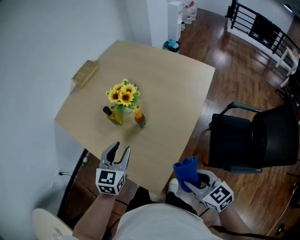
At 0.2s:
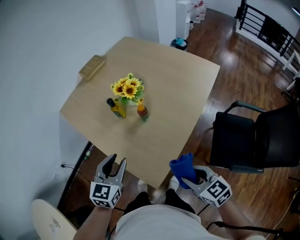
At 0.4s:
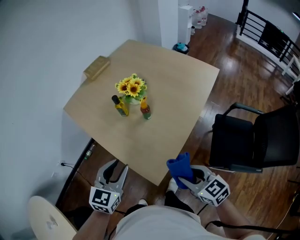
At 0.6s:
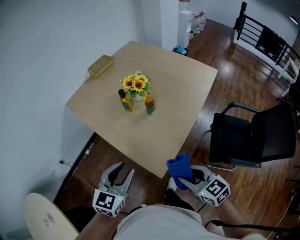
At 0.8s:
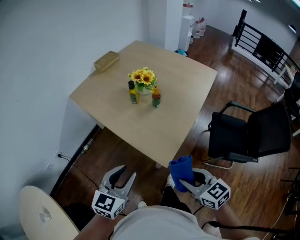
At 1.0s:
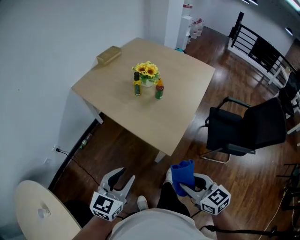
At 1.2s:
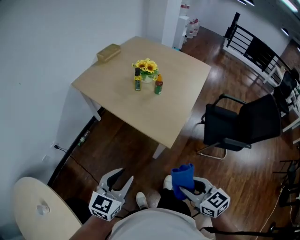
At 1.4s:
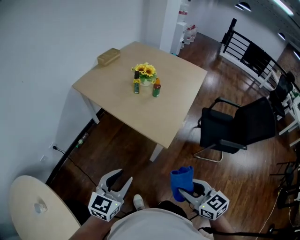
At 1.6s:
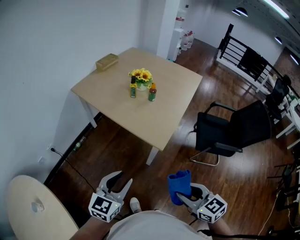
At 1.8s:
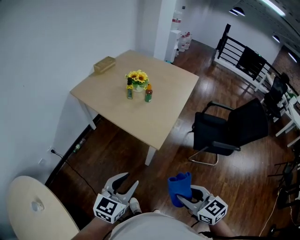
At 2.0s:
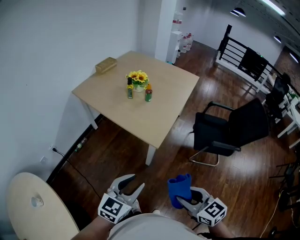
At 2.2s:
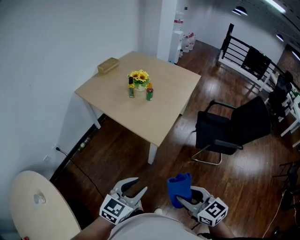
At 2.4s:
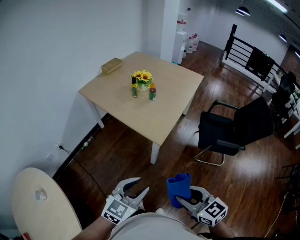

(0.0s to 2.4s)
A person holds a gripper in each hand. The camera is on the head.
0.0s - 1.2s: The two grippers go some 40 cm backward and to the left.
1.2s - 2.4s: The right gripper is displaced backward by roughly 15 cm, while the left gripper is displaced backward and to the right by approximately 20 cm.

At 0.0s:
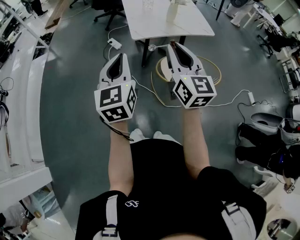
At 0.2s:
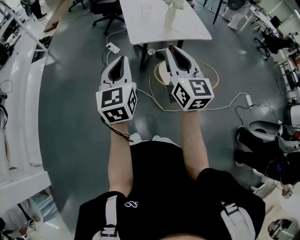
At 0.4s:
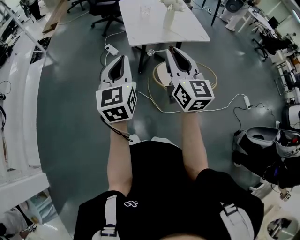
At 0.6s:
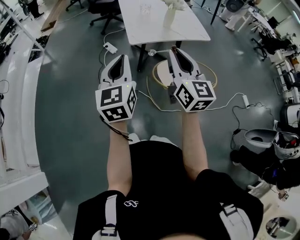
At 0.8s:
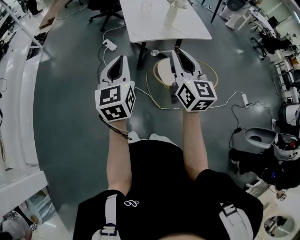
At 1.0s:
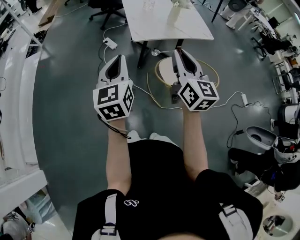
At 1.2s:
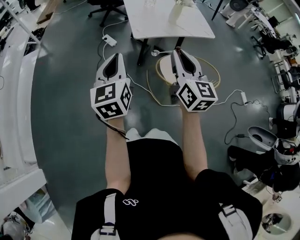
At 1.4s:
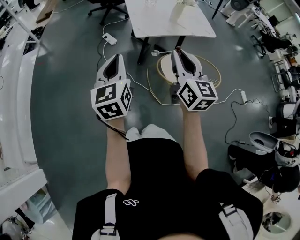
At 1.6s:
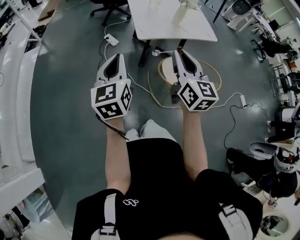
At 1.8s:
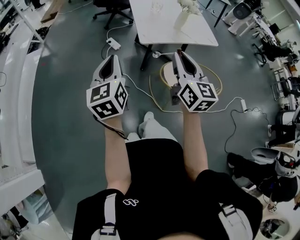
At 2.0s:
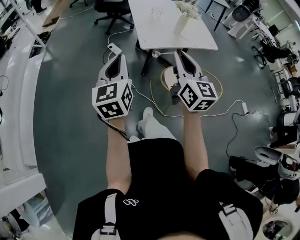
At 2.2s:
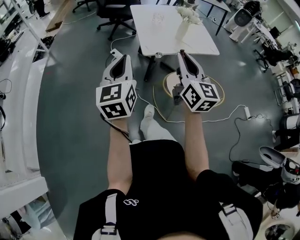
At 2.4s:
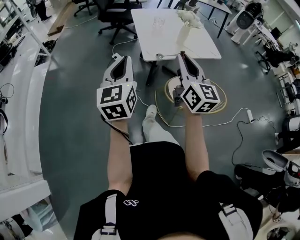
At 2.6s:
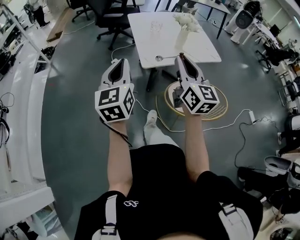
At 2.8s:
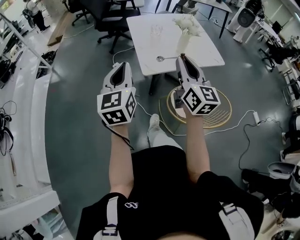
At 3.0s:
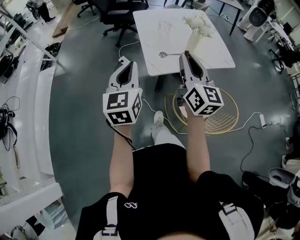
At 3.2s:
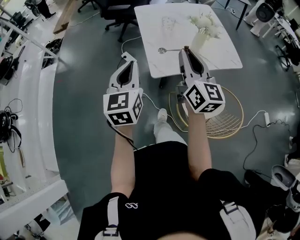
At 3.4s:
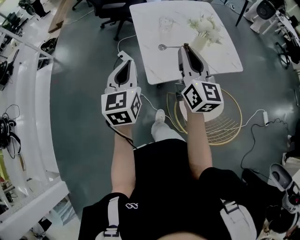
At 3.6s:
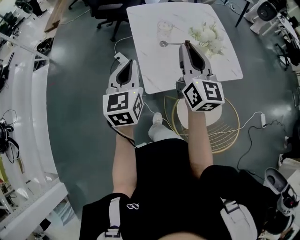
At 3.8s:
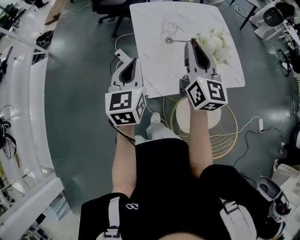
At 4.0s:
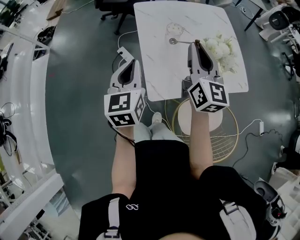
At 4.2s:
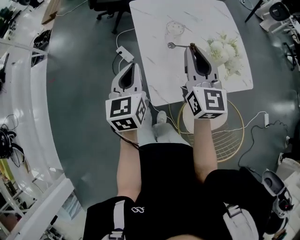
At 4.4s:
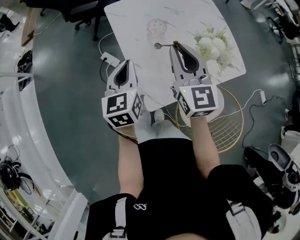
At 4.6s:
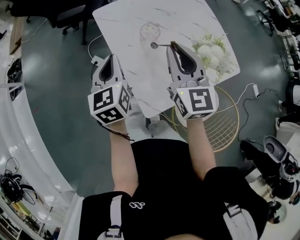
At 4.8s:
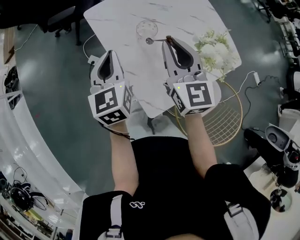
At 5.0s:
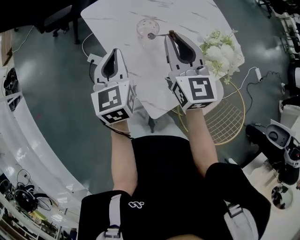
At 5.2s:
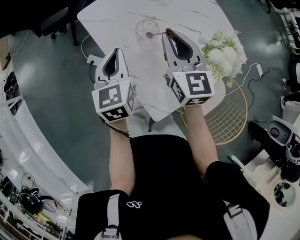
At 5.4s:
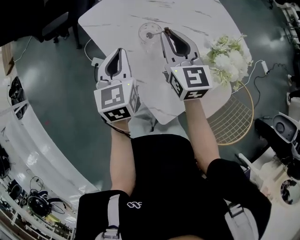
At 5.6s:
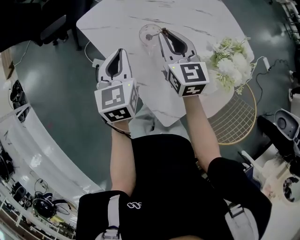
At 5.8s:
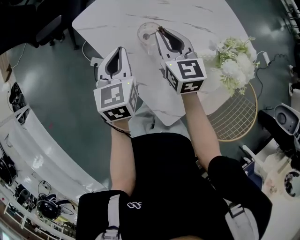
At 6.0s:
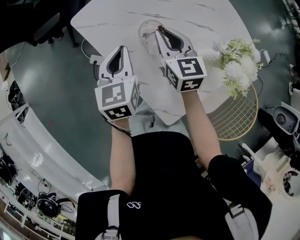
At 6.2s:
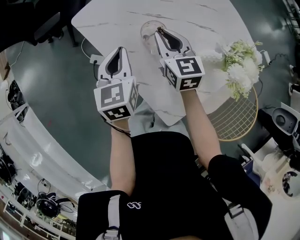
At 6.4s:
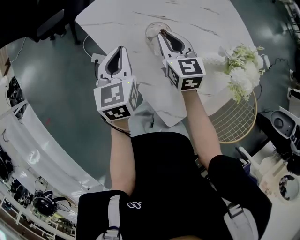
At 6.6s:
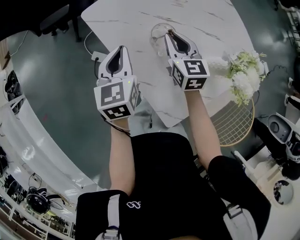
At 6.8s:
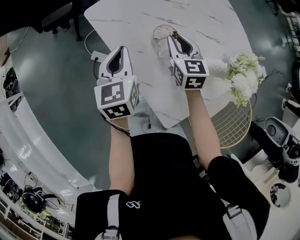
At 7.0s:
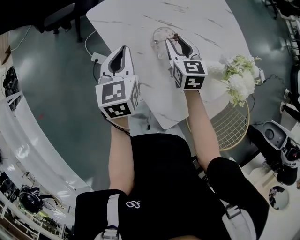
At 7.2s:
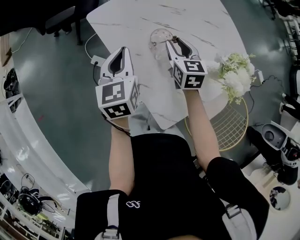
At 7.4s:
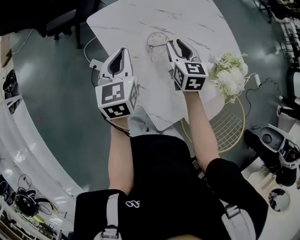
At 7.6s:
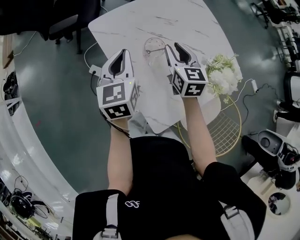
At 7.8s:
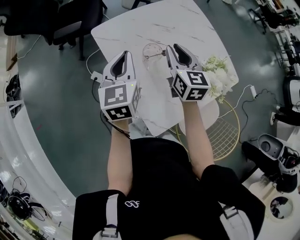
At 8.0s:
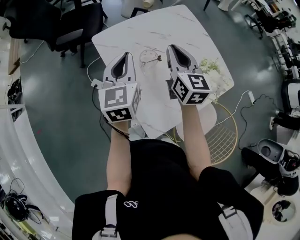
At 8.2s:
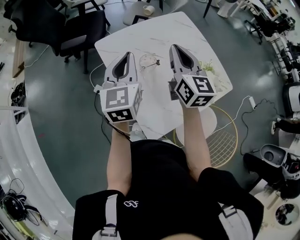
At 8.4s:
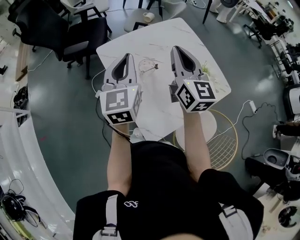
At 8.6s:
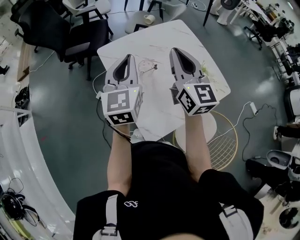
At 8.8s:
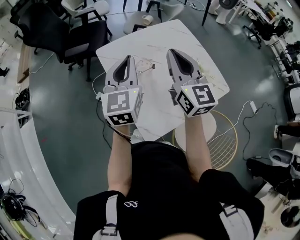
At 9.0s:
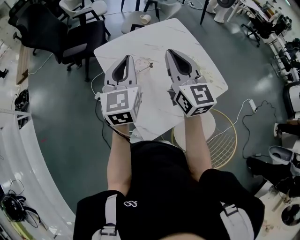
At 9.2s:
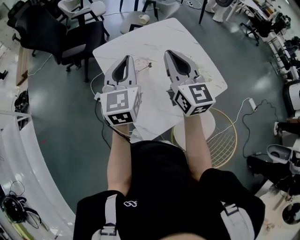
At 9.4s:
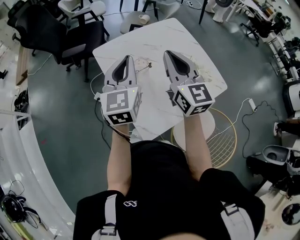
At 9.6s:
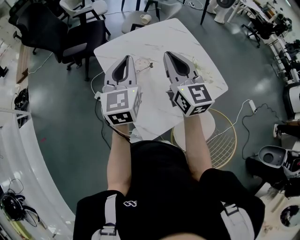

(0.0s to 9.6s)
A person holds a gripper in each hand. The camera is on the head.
0.0s - 1.6s: The left gripper heads to the left, covering some 10 cm. Meanwhile the right gripper moves approximately 5 cm.
1.6s - 3.2s: Both grippers move forward, about 25 cm.
3.2s - 4.8s: The two grippers go some 35 cm forward. The right gripper turns by roughly 30 degrees.
4.8s - 6.4s: The left gripper goes roughly 15 cm forward and downward, while the right gripper shifts roughly 20 cm downward and forward.
6.4s - 8.0s: Both grippers move upward, some 15 cm. The right gripper opens and closes again.
8.0s - 9.6s: The right gripper heads upward and backward, covering some 10 cm, while the left gripper travels upward by approximately 5 cm.

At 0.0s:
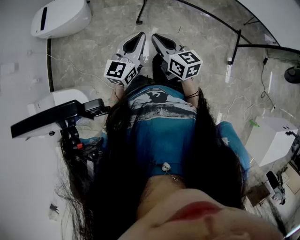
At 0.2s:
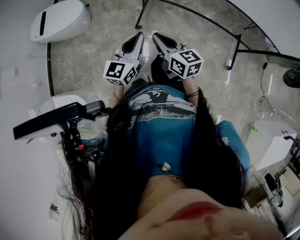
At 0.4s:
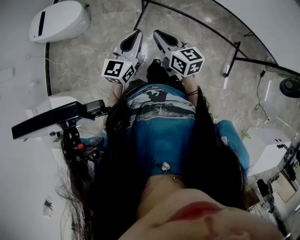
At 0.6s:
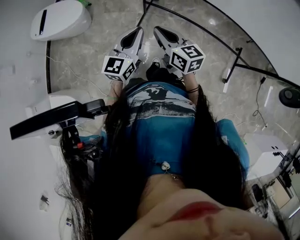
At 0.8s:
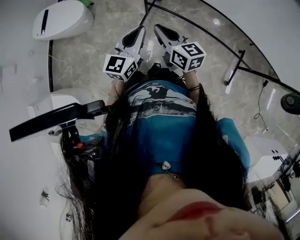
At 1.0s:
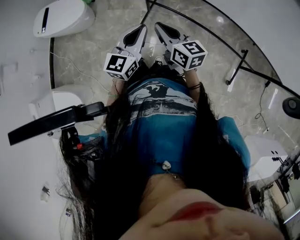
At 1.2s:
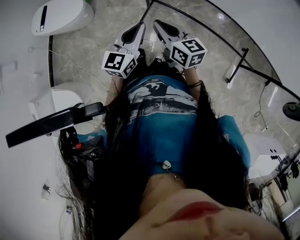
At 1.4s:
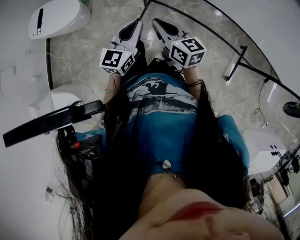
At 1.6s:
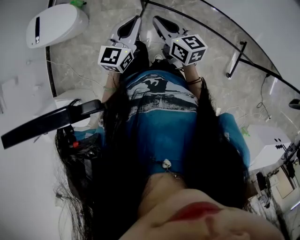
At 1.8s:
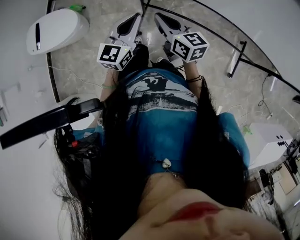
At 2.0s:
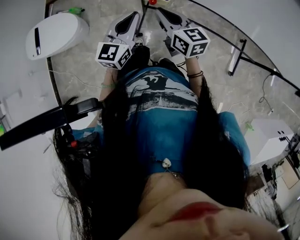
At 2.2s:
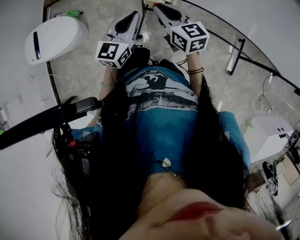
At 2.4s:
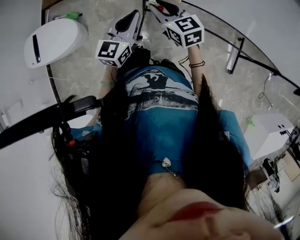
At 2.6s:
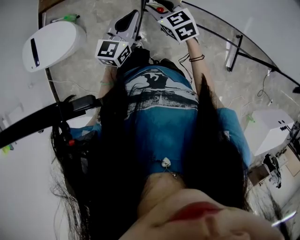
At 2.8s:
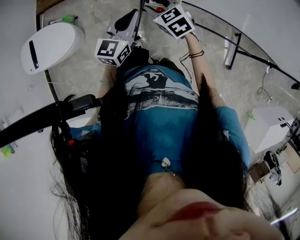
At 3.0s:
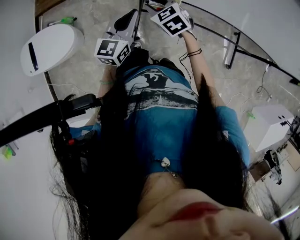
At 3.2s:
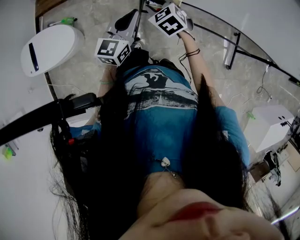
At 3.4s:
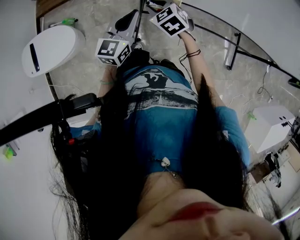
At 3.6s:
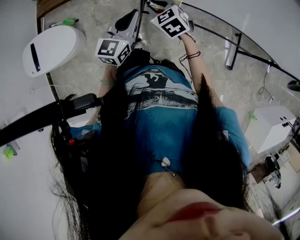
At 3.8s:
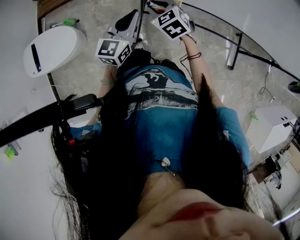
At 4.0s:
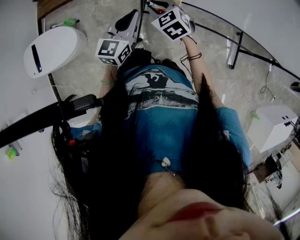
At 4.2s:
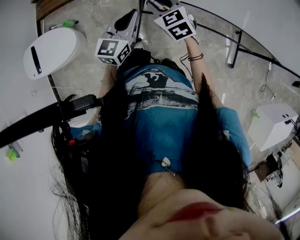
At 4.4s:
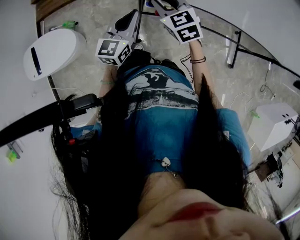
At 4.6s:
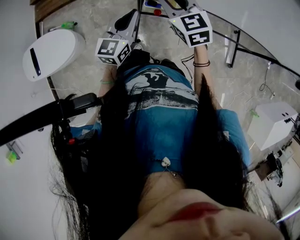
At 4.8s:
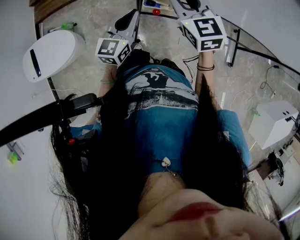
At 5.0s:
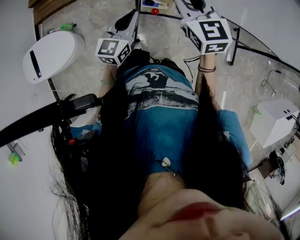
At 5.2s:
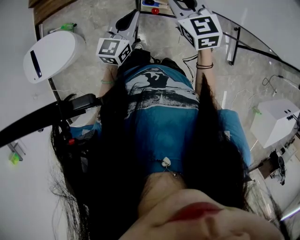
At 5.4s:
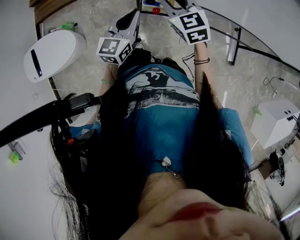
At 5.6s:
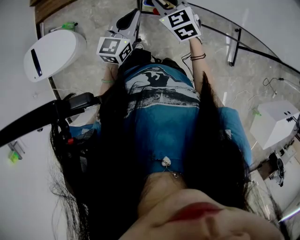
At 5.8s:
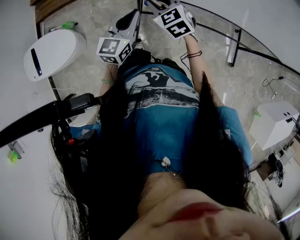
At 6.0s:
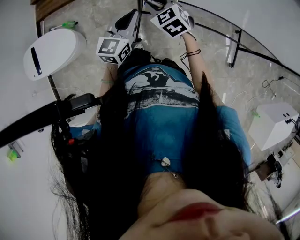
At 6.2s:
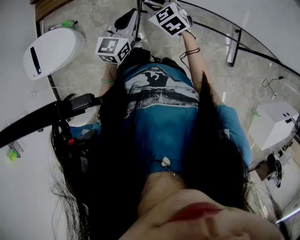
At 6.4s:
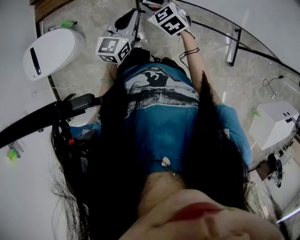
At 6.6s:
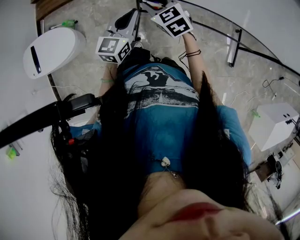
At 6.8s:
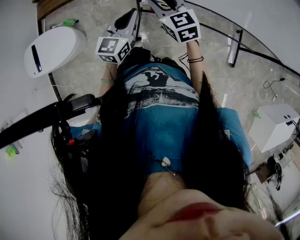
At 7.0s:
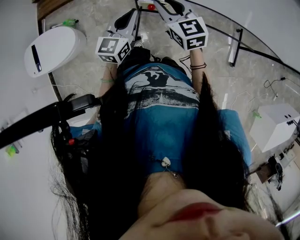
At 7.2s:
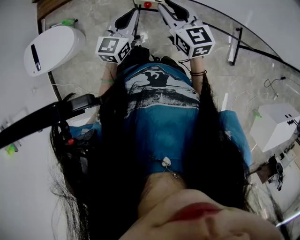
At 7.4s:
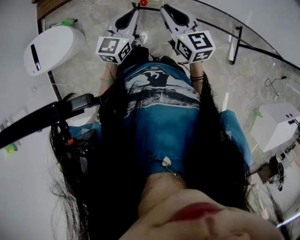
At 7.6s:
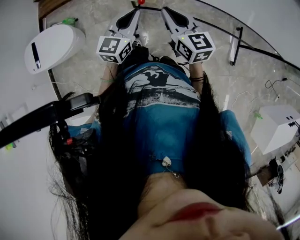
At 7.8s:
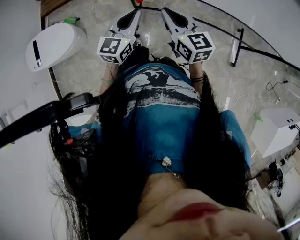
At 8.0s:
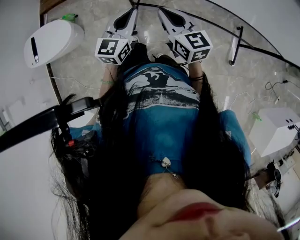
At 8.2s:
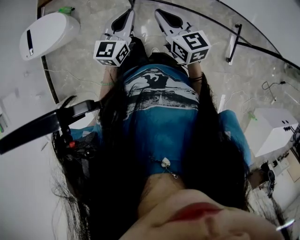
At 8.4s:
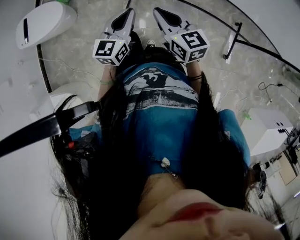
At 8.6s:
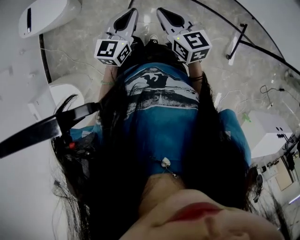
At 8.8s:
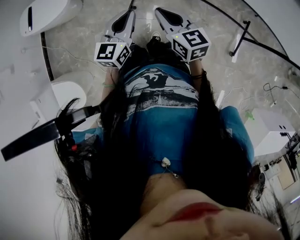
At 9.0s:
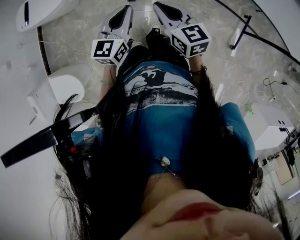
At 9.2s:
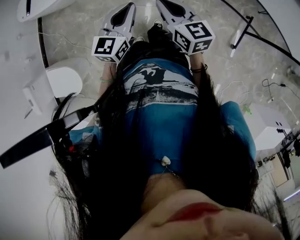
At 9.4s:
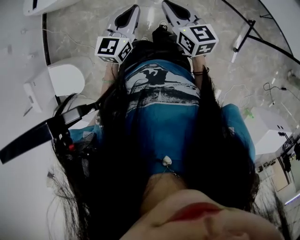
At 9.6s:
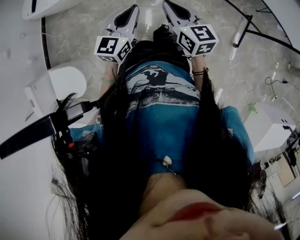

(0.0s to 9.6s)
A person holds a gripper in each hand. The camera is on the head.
0.0s - 1.6s: Both grippers move forward, approximately 35 cm.
1.6s - 3.2s: The left gripper heads forward and to the left, covering roughly 20 cm. The right gripper shifts about 20 cm forward, tips its fingers downward by about 30 degrees, and opens.
3.2s - 4.8s: The right gripper shifts about 15 cm upward and to the right, and turns by roughly 30 degrees.
4.8s - 6.4s: The right gripper travels downward and to the left by about 15 cm, and turns by some 30 degrees.
6.4s - 8.0s: The right gripper is displaced to the right, backward and upward by approximately 25 cm, and changes its angle by roughly 40 degrees. Meanwhile the left gripper goes some 15 cm backward and to the right.
8.0s - 9.6s: Both grippers move backward, roughly 30 cm.

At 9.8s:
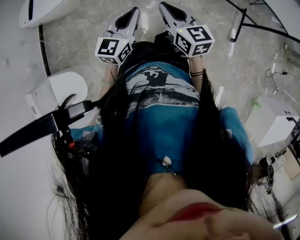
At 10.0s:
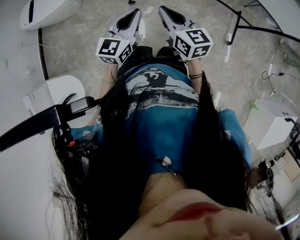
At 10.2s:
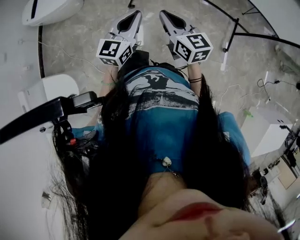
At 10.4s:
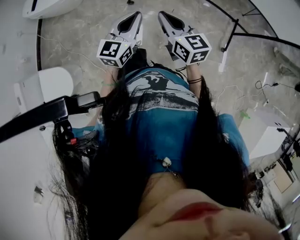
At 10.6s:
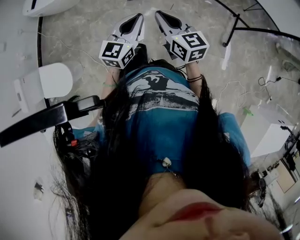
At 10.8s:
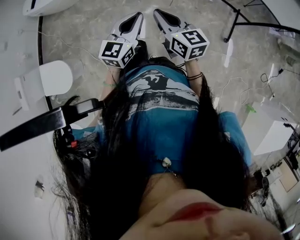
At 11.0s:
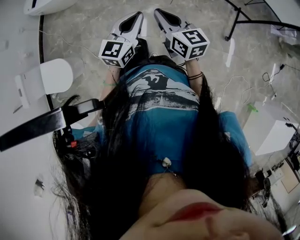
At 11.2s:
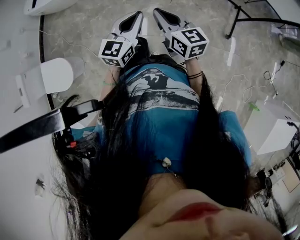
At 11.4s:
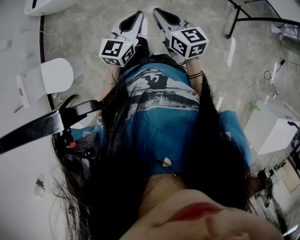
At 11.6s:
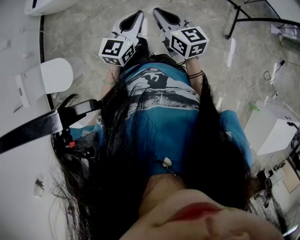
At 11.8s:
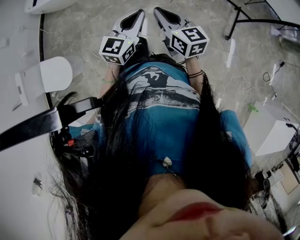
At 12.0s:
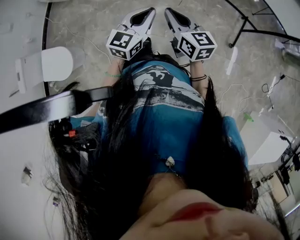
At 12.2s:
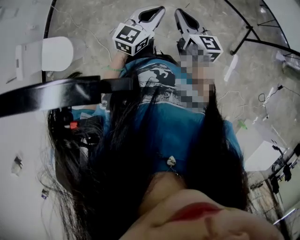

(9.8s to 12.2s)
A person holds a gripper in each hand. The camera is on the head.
9.8s - 11.0s: The right gripper heads backward, covering some 20 cm. Meanwhile the left gripper moves backward and to the right, about 20 cm.
11.0s - 12.2s: The grippers move only a little.
